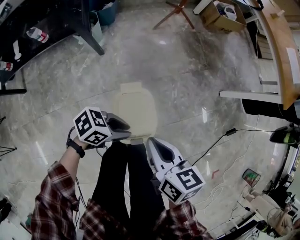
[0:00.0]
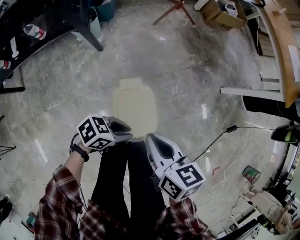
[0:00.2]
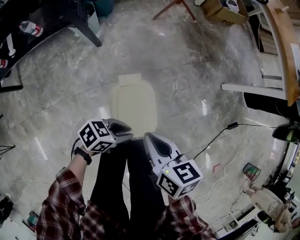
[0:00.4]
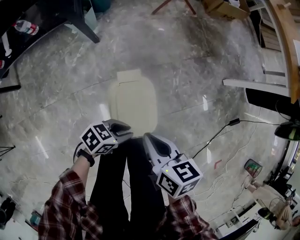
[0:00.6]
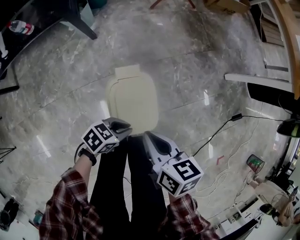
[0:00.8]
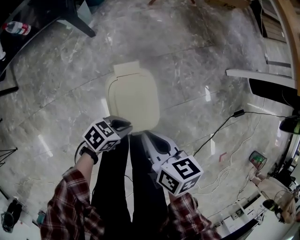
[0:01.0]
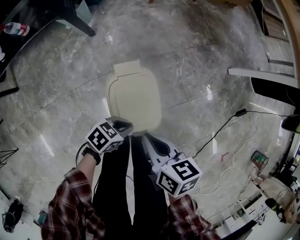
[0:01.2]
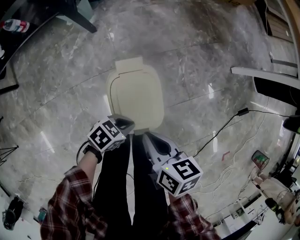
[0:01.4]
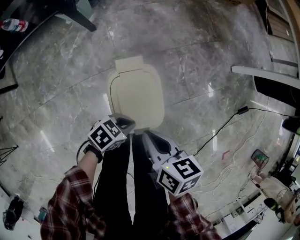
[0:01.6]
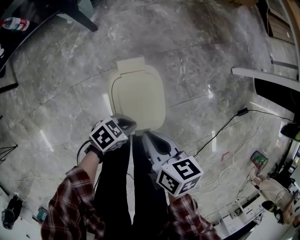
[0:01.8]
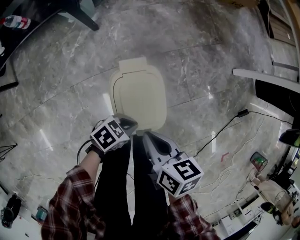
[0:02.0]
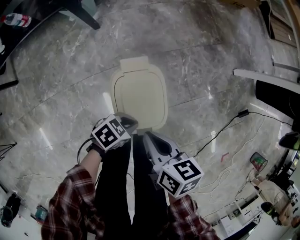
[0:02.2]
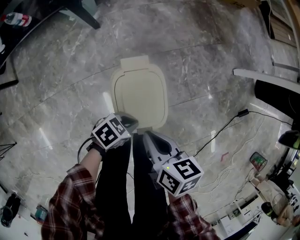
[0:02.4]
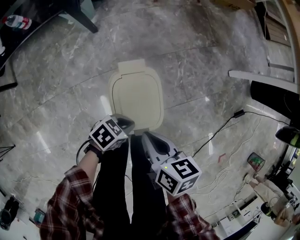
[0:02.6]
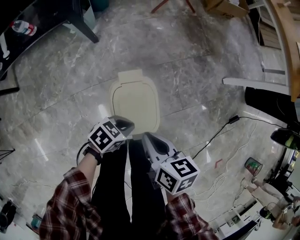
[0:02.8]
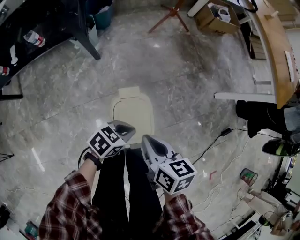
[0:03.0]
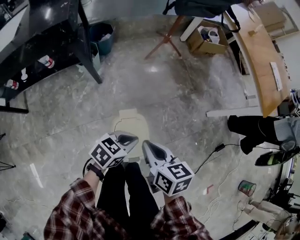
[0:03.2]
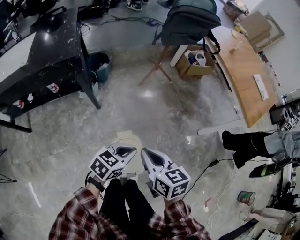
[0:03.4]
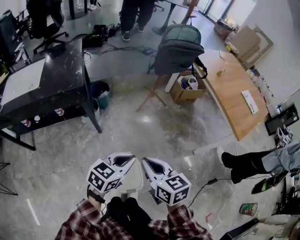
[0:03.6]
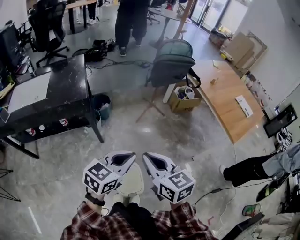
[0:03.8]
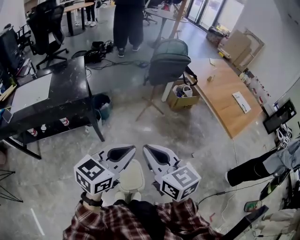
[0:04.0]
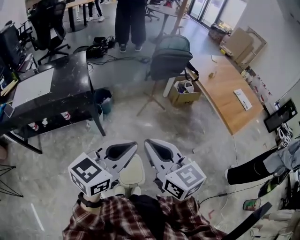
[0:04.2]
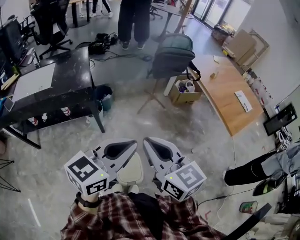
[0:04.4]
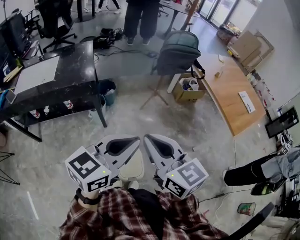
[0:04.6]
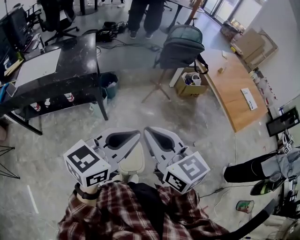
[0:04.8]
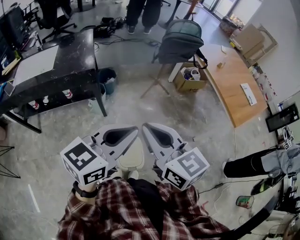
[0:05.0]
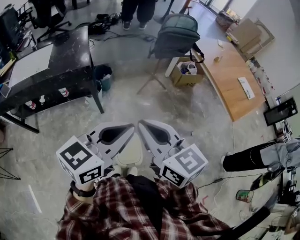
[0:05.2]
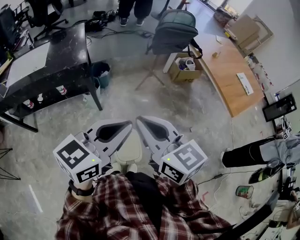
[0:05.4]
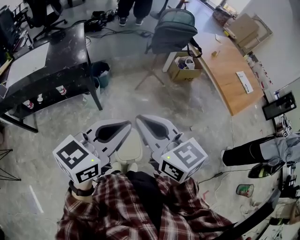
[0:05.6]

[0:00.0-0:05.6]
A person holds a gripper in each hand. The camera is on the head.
0:00.0 to 0:01.4: Both grippers travel together downward, some 15 cm. The left gripper closes up.
0:01.4 to 0:02.8: The left gripper shifts by some 5 cm.
0:02.8 to 0:04.2: The two grippers go about 60 cm upward. The right gripper tilts its fingers roughly 30 degrees upward, while the left gripper tips its fingers upward by about 40 degrees.
0:04.2 to 0:05.6: There are only small adjustments of the grippers.

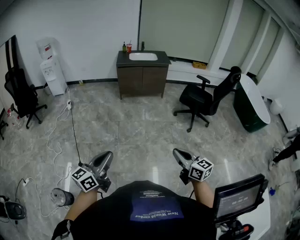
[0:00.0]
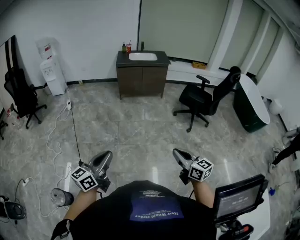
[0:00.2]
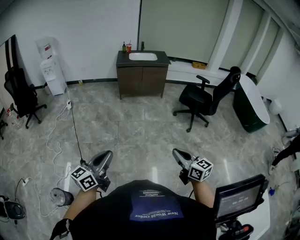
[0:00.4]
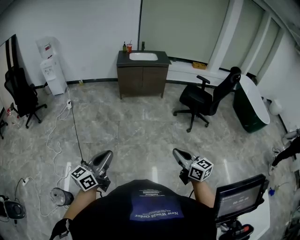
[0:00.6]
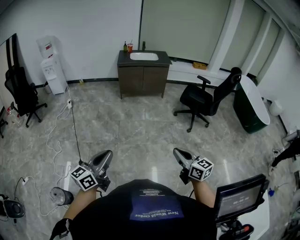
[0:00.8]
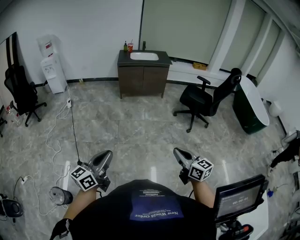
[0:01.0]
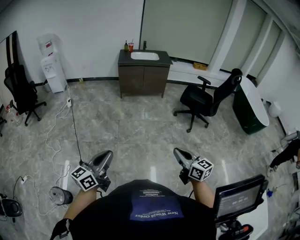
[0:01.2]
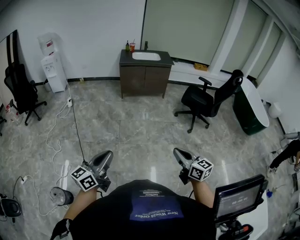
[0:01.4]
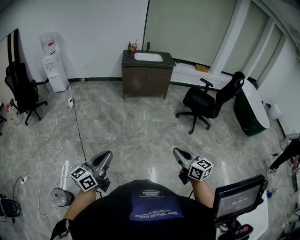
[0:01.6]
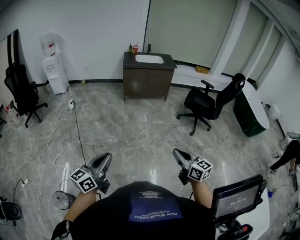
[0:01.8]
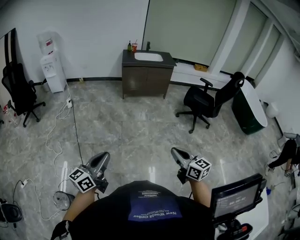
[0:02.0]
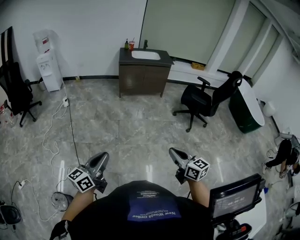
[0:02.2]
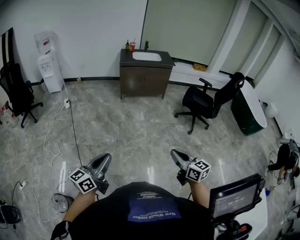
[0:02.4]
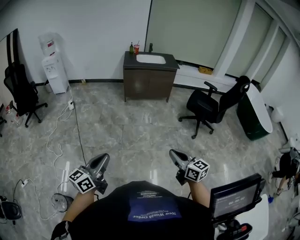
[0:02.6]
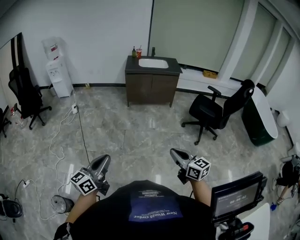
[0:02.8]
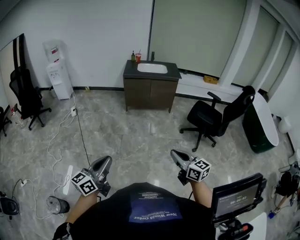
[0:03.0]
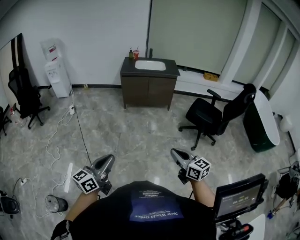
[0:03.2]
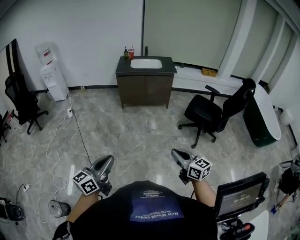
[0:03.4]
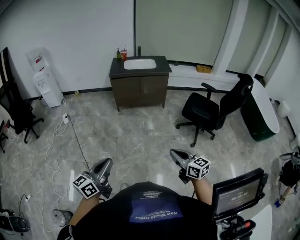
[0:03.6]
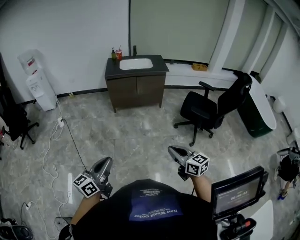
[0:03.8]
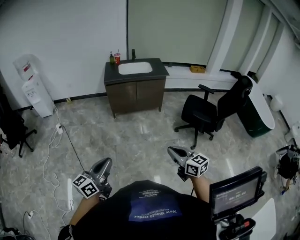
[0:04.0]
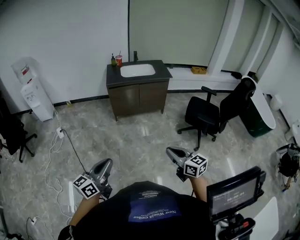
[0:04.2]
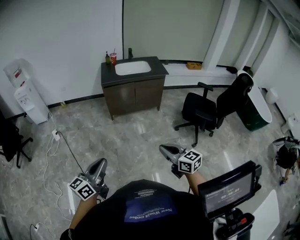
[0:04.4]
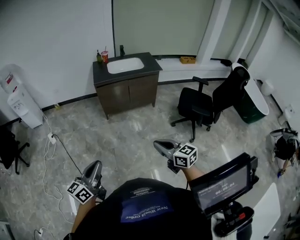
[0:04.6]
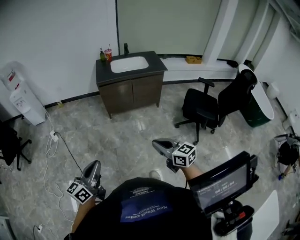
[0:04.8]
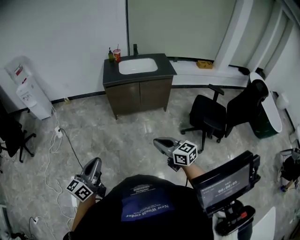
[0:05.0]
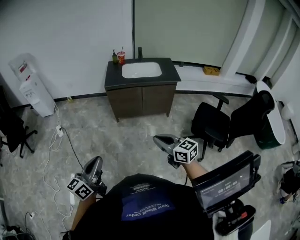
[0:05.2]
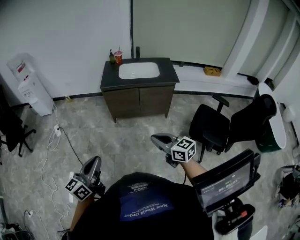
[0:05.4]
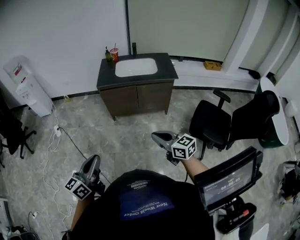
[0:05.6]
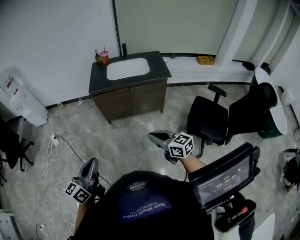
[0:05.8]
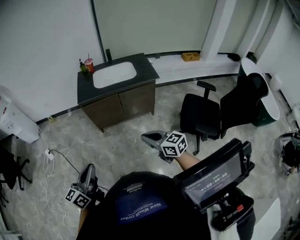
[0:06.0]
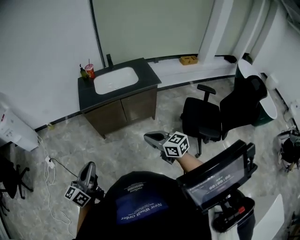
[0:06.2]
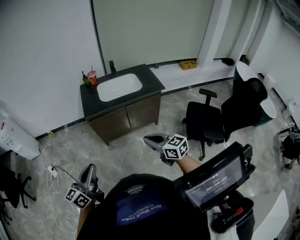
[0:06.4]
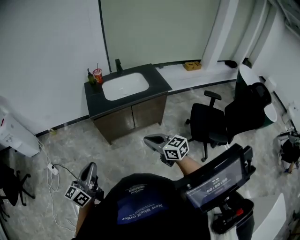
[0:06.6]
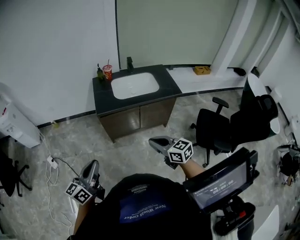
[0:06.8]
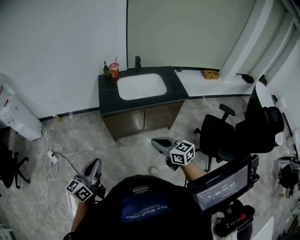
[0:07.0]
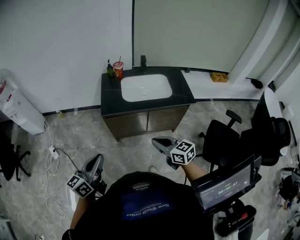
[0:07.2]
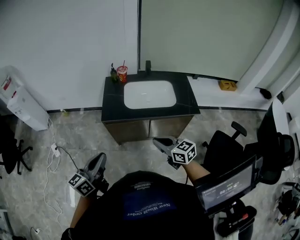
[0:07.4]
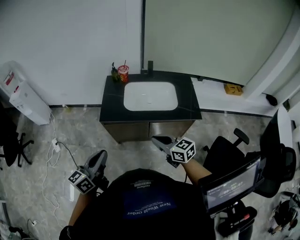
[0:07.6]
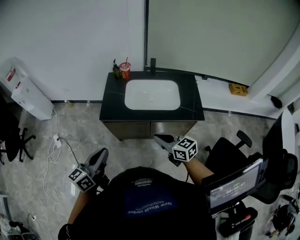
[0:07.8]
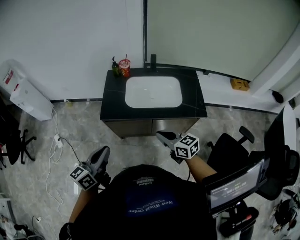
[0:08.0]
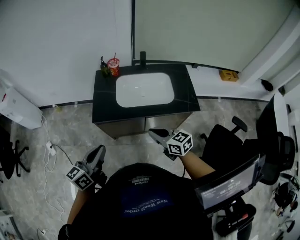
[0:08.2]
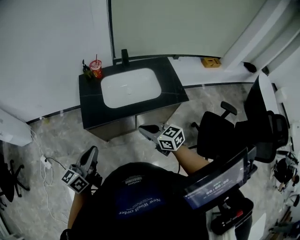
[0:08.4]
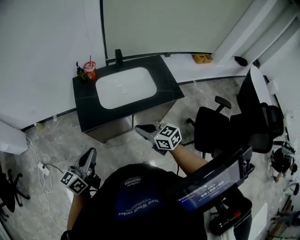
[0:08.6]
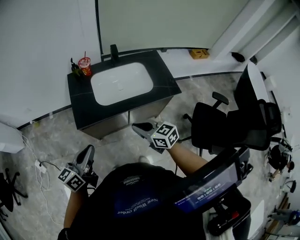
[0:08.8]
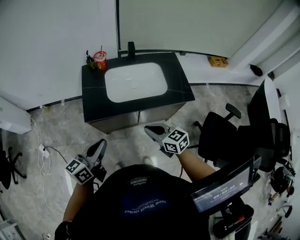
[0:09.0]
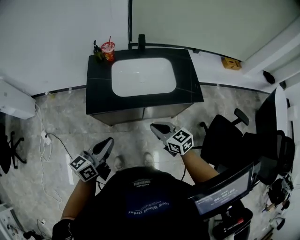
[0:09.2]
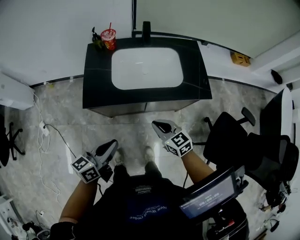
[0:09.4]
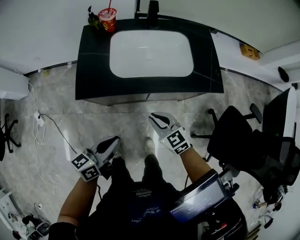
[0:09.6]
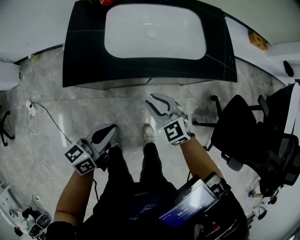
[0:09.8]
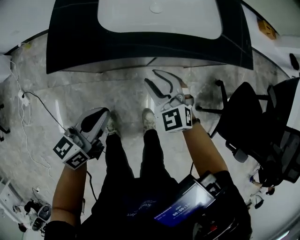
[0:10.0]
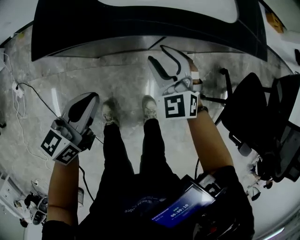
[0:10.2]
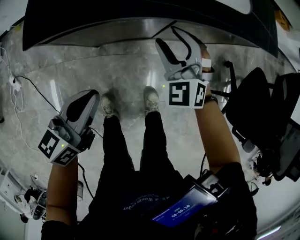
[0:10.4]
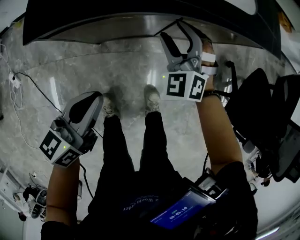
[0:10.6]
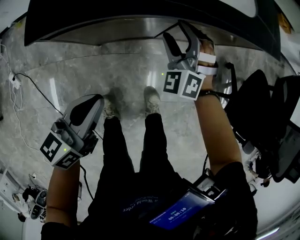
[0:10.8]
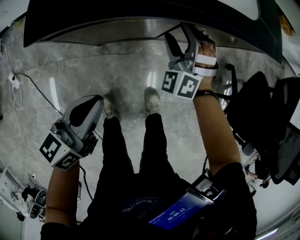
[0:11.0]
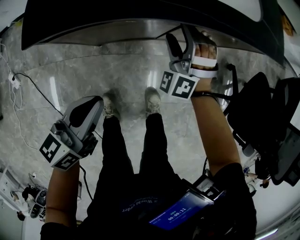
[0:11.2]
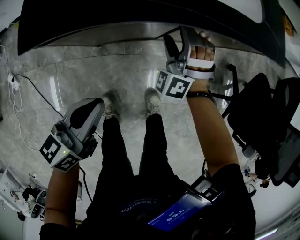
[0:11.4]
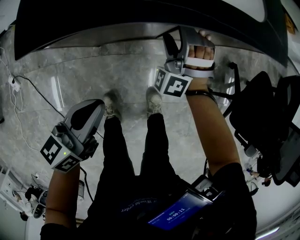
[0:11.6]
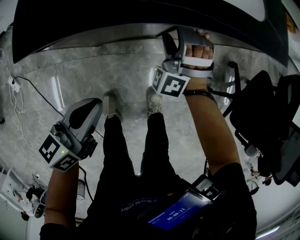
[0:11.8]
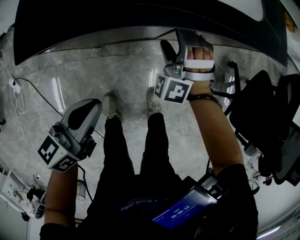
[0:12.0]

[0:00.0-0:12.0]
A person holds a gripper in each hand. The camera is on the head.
0:00.0 to 0:01.6: The two grippers go approximately 5 cm to the left.
0:01.6 to 0:03.0: Both grippers travel together forward and to the right, roughly 20 cm.
0:03.0 to 0:04.4: The right gripper moves forward and to the left, about 30 cm. Meanwhile the left gripper moves forward, approximately 30 cm.
0:04.4 to 0:06.0: Both grippers move forward and to the right, about 35 cm.
0:06.0 to 0:07.6: The grippers both shift forward by roughly 35 cm.
0:07.6 to 0:09.0: The left gripper travels forward and downward by approximately 10 cm. Meanwhile the right gripper goes some 10 cm downward and forward.
0:09.0 to 0:10.4: The right gripper heads downward and forward, covering some 30 cm, rolls counterclockwise, seen from behind, by roughly 50 degrees, and opens. The left gripper heads downward, covering roughly 30 cm.
0:10.4 to 0:12.0: The right gripper shifts roughly 5 cm downward, rotates about 40 degrees, and opens up.

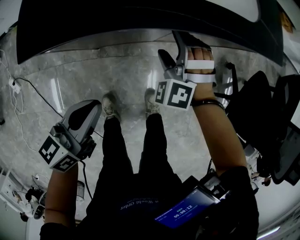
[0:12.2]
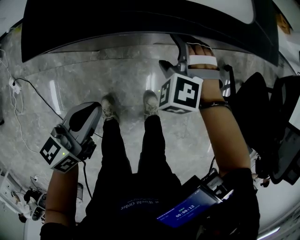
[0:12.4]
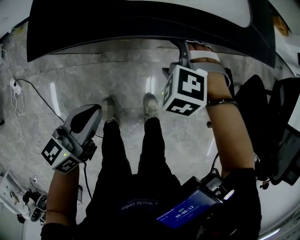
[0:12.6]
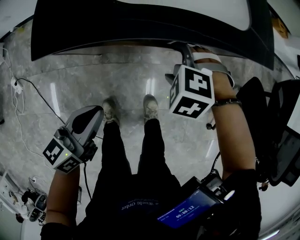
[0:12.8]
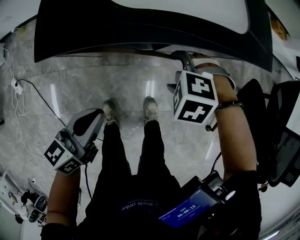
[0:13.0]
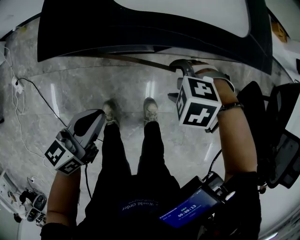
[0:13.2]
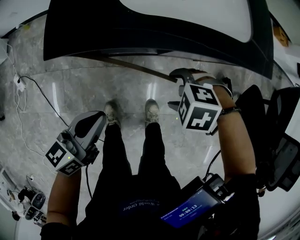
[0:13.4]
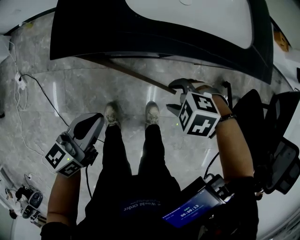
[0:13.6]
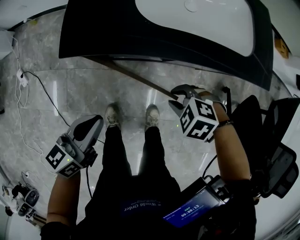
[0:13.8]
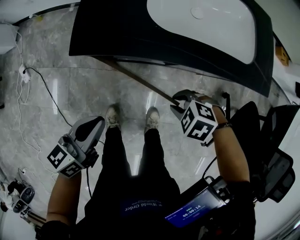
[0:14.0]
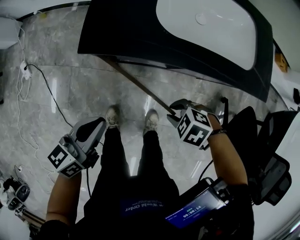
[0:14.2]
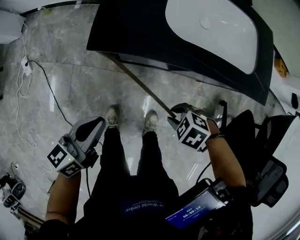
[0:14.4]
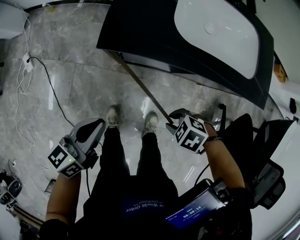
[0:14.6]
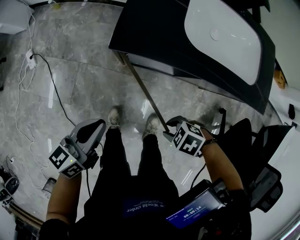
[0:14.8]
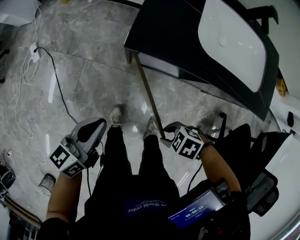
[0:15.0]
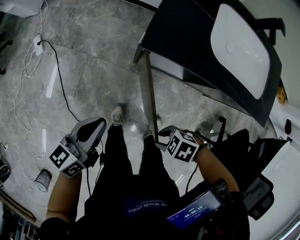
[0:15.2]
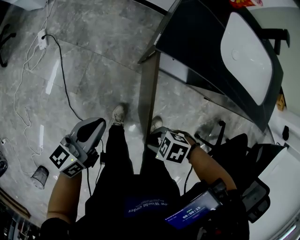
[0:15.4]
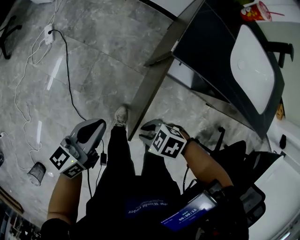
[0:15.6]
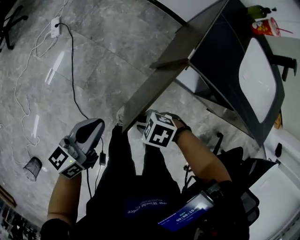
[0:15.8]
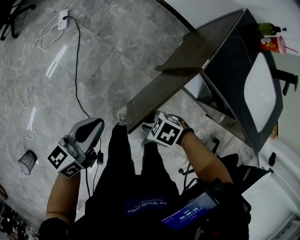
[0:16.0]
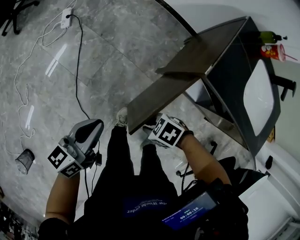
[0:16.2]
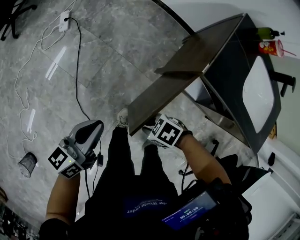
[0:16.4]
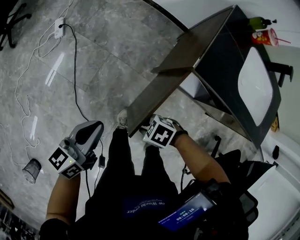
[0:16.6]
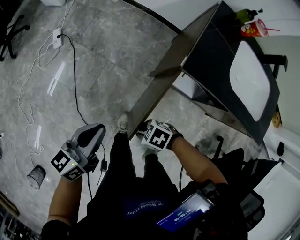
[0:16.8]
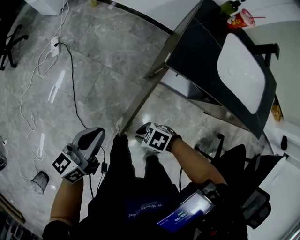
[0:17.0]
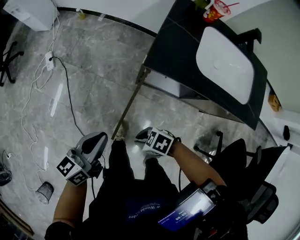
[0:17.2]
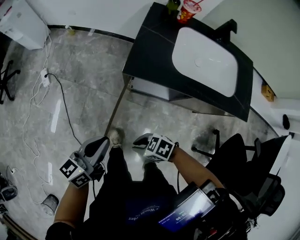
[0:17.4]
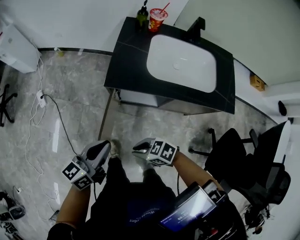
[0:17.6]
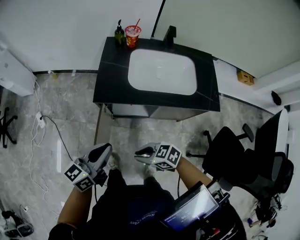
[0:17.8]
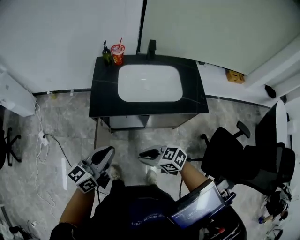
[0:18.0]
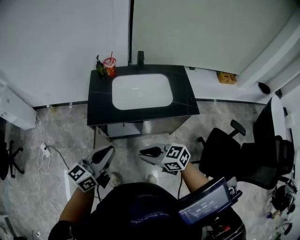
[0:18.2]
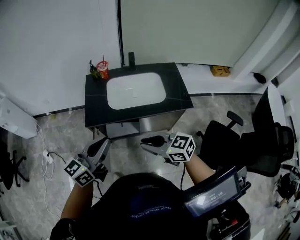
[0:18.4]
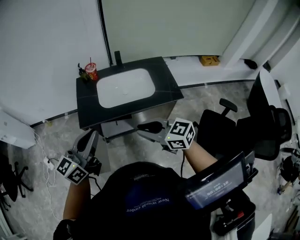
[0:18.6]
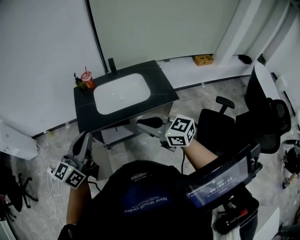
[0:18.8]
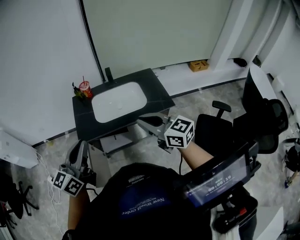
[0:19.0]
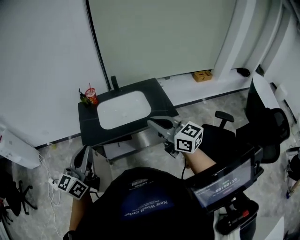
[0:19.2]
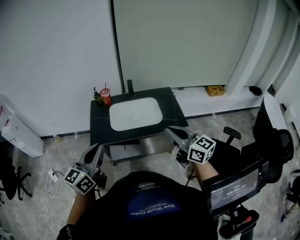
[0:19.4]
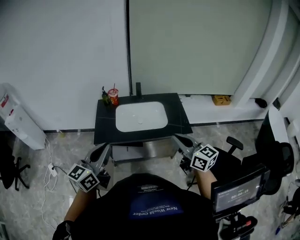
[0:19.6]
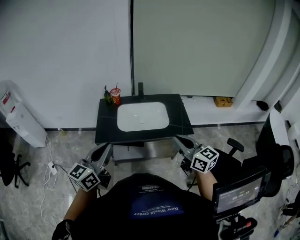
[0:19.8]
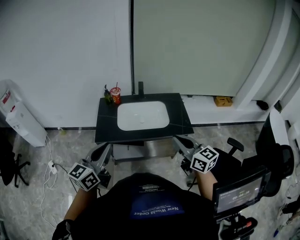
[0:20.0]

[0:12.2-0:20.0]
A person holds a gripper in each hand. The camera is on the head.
0:12.2 to 0:13.8: The right gripper shifts by roughly 15 cm, points its fingers about 40 degrees further downward, and closes. Meanwhile the left gripper changes place by roughly 10 cm.
0:13.8 to 0:15.4: The left gripper moves approximately 20 cm. The right gripper ends up about 25 cm from where it was, and turns by about 30 degrees.
0:15.4 to 0:16.8: The right gripper shifts by roughly 15 cm.
0:16.8 to 0:18.4: The right gripper heads upward, covering about 40 cm, and angles its fingers upward, by roughly 40 degrees. The left gripper ends up about 50 cm from where it was, and changes its angle by about 40 degrees.
0:18.4 to 0:20.0: The right gripper moves to the right and upward, about 20 cm, and rotates about 30 degrees. The left gripper heads upward, covering roughly 5 cm.
